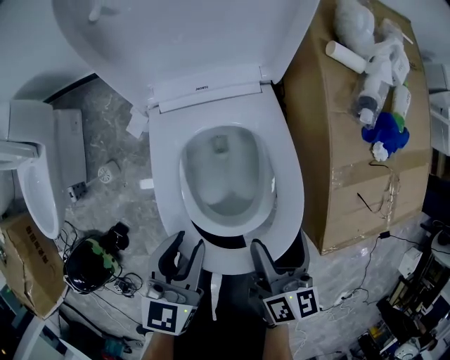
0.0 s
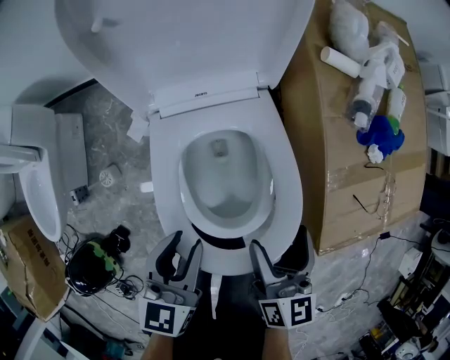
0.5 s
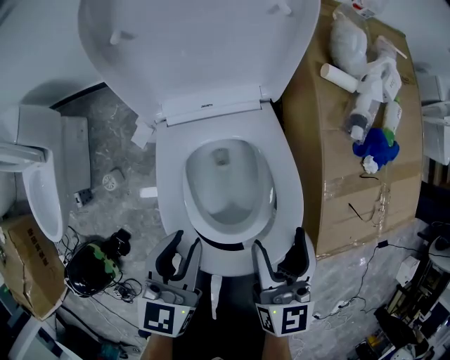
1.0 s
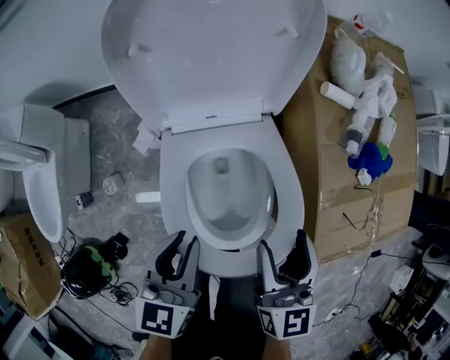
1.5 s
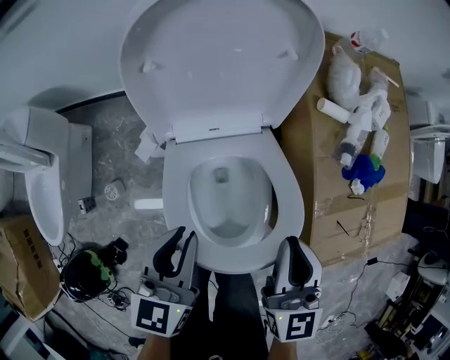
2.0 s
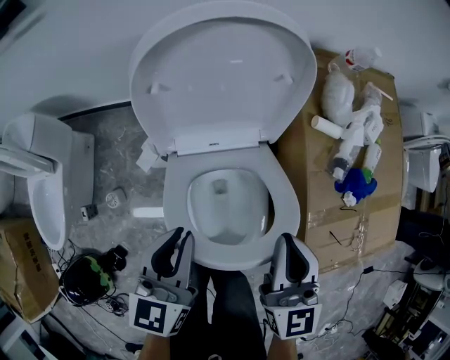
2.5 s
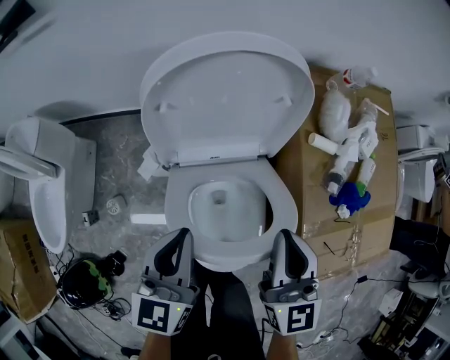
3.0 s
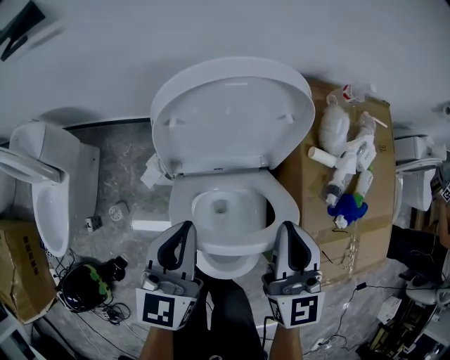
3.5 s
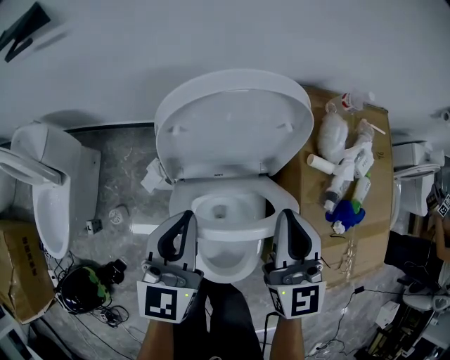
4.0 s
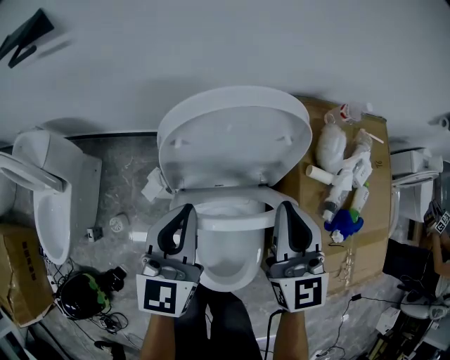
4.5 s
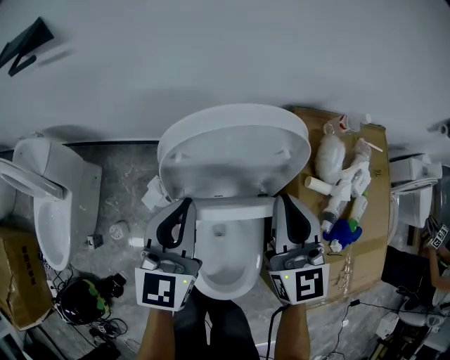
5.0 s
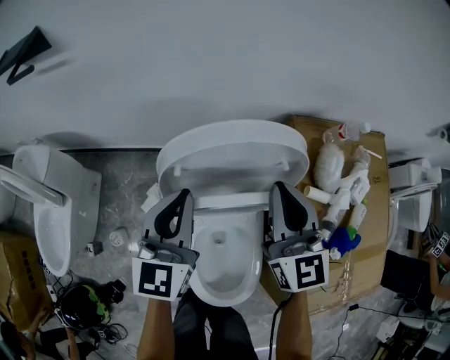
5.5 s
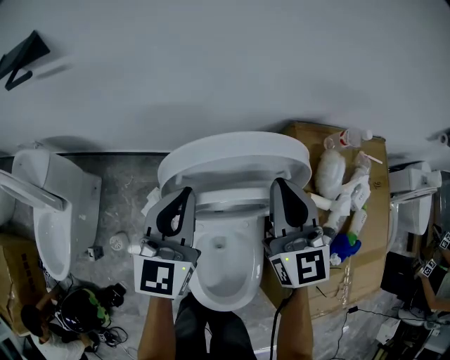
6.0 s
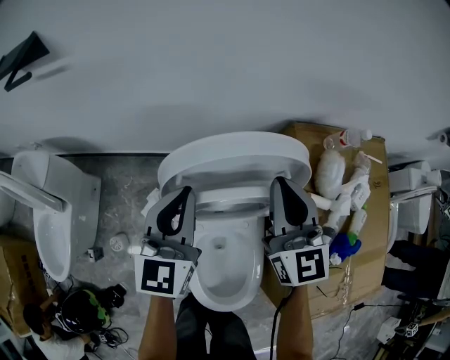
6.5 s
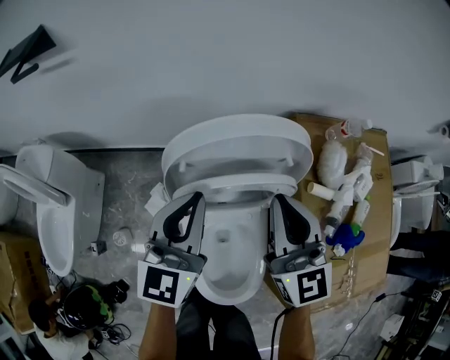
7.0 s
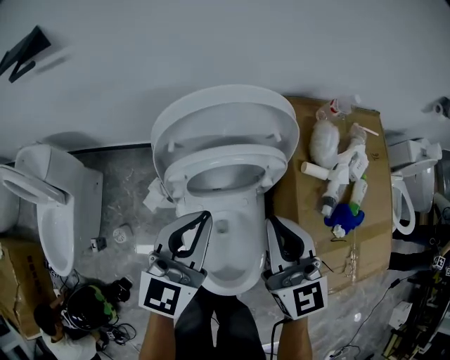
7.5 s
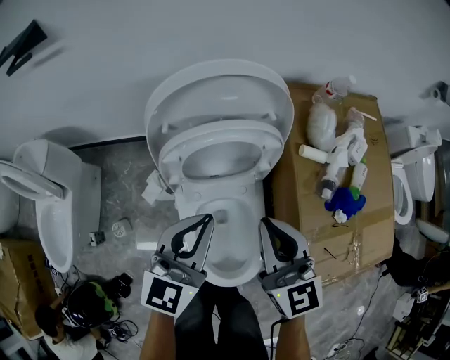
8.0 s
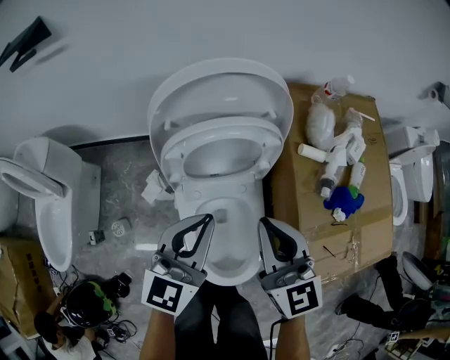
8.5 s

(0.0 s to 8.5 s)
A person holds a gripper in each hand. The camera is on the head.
0.0 s - 2.0 s: The two grippers go roughly 15 cm upward and forward. The right gripper swivels approximately 40 degrees, and closes its fingers.
2.0 s - 4.0 s: Both grippers move forward and upward, about 15 cm.
4.0 s - 6.5 s: The two grippers go approximately 15 cm forward.
6.5 s - 8.5 s: The left gripper goes about 20 cm backward and to the right. The right gripper goes approximately 20 cm backward.

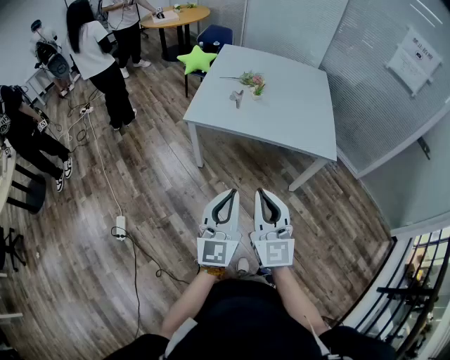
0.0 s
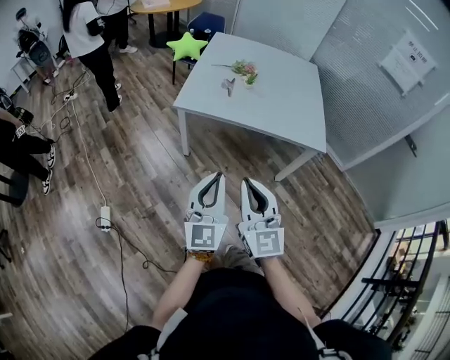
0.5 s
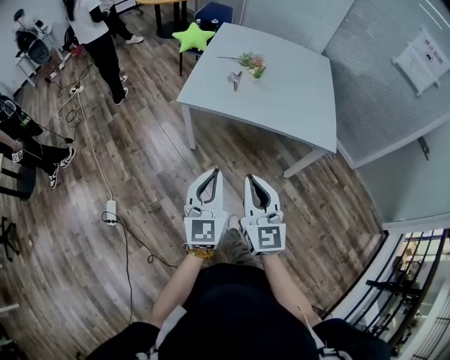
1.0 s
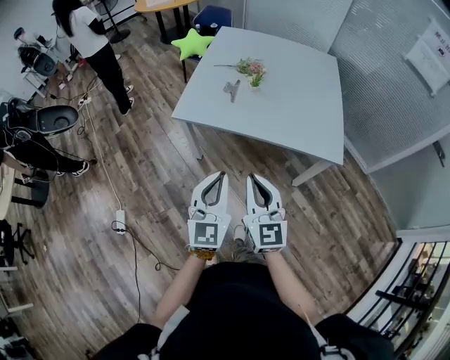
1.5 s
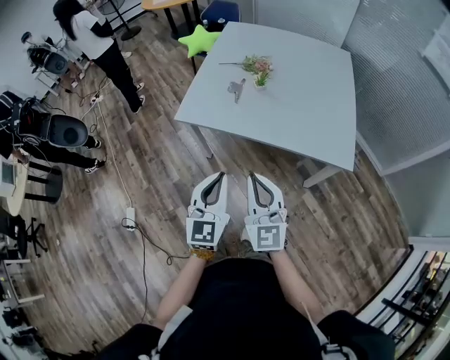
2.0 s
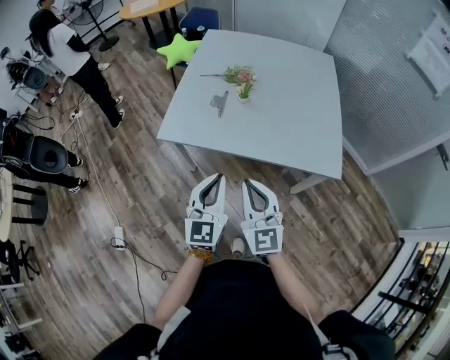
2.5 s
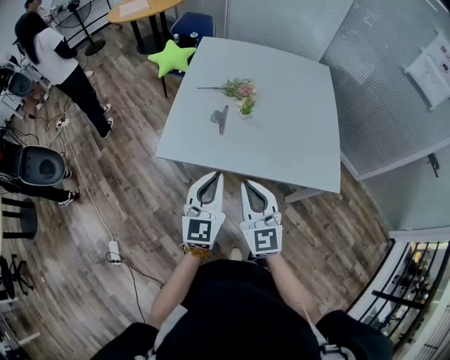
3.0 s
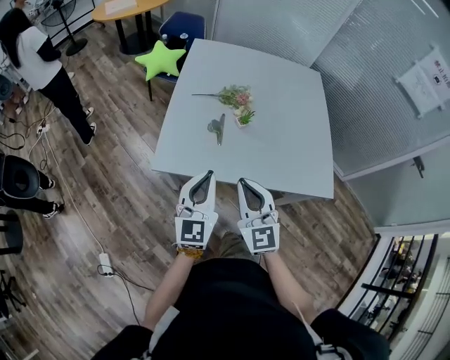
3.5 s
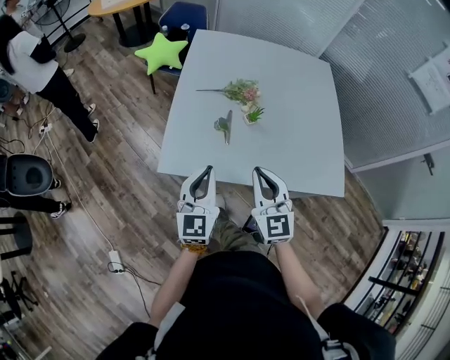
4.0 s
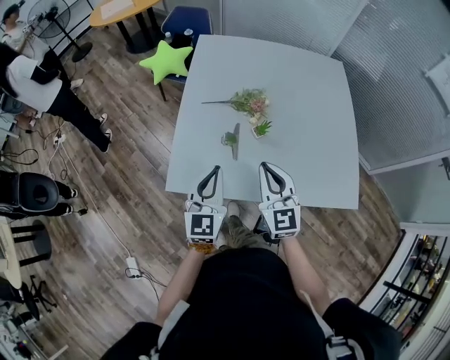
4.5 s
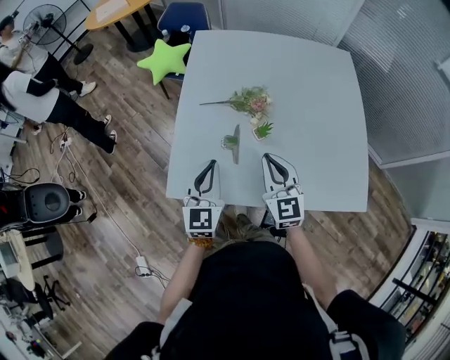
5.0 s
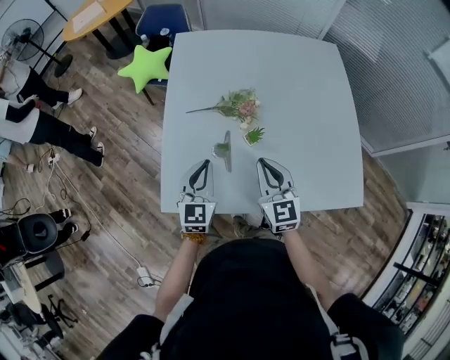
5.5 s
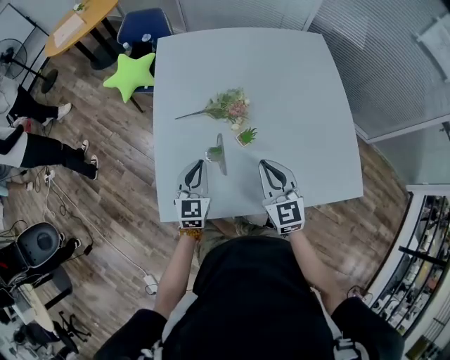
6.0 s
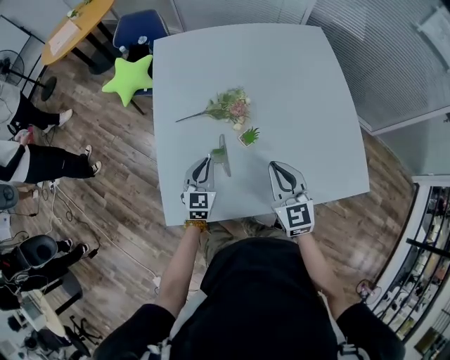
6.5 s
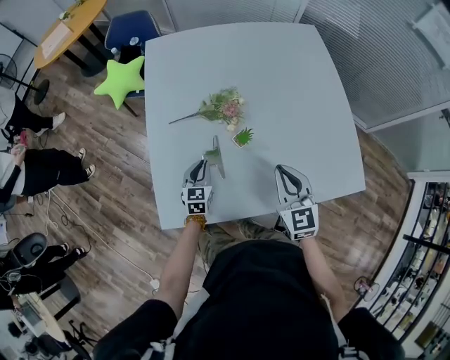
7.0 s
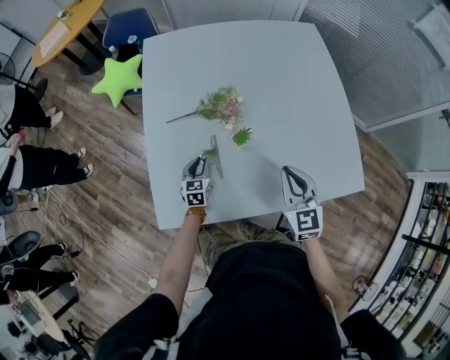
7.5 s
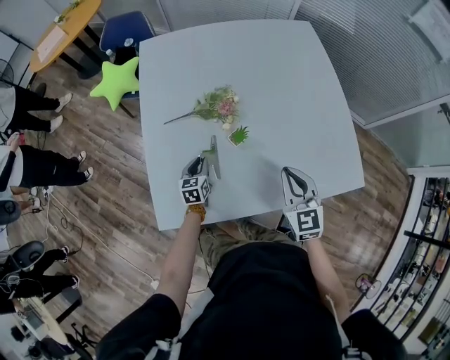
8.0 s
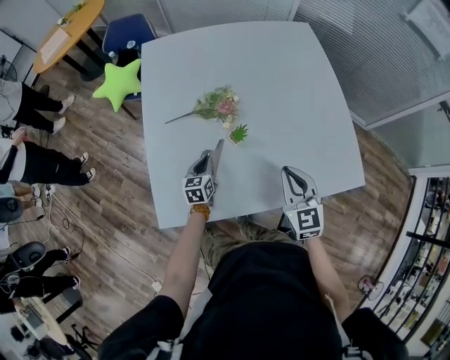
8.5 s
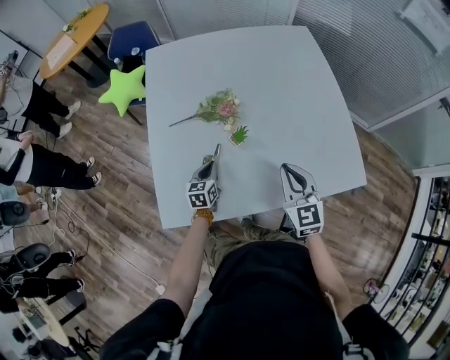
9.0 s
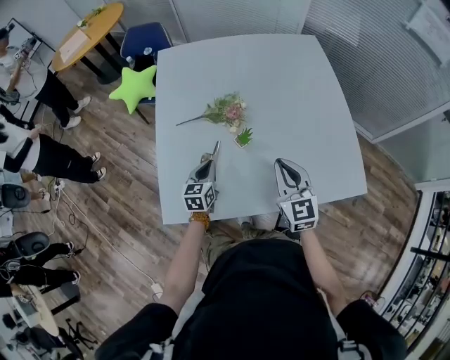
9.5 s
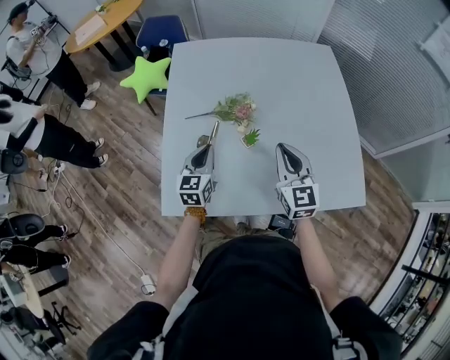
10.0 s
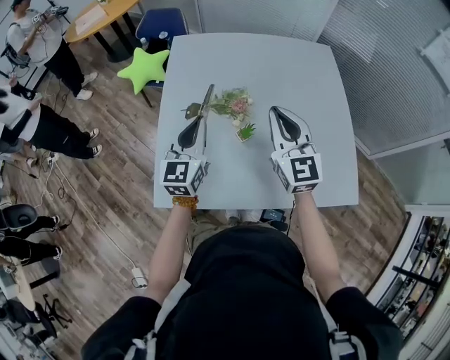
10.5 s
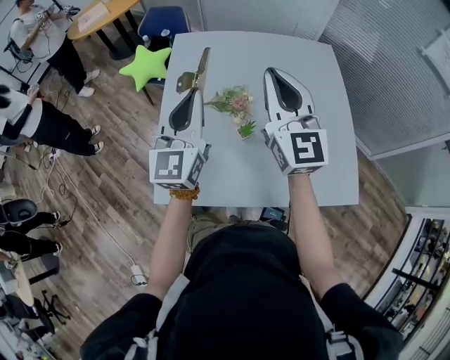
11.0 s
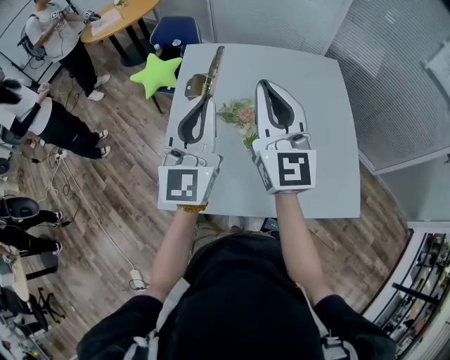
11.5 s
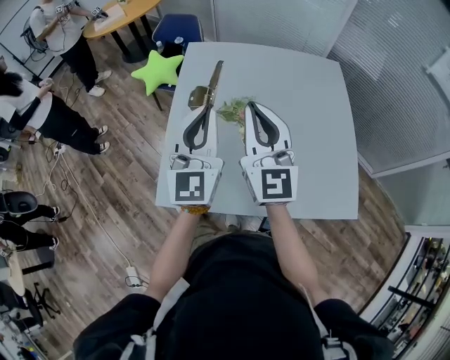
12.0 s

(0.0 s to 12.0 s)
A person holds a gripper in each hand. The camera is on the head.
0.0 s - 2.0 s: The two grippers go approximately 20 cm forward.
2.0 s - 4.0 s: The right gripper travels forward by approximately 30 cm. Meanwhile the left gripper heads forward and to the left, covering approximately 30 cm.
4.0 s - 6.0 s: The two grippers go some 25 cm forward and downward.
6.0 s - 8.0 s: The left gripper moves downward, roughly 20 cm, and swivels some 30 degrees; the right gripper is displaced to the right by some 10 cm.
8.0 s - 10.0 s: The left gripper heads upward, covering roughly 20 cm. Meanwhile the right gripper travels upward by some 5 cm.
10.0 s - 12.0 s: The right gripper is displaced upward and to the left by roughly 20 cm, and swivels some 20 degrees, while the left gripper shifts some 25 cm upward, and rotates about 30 degrees.

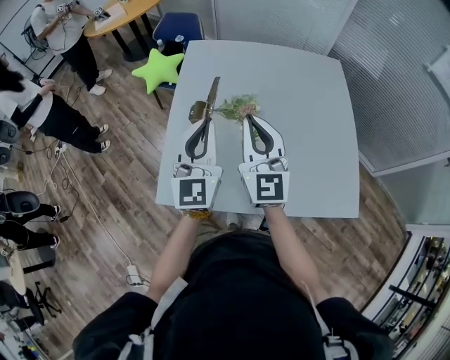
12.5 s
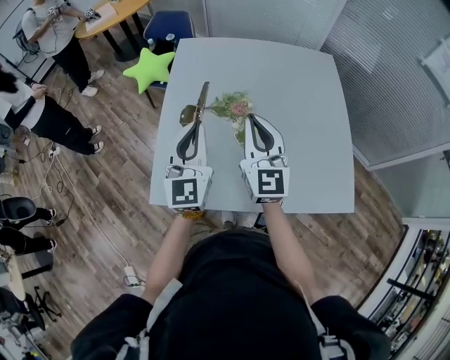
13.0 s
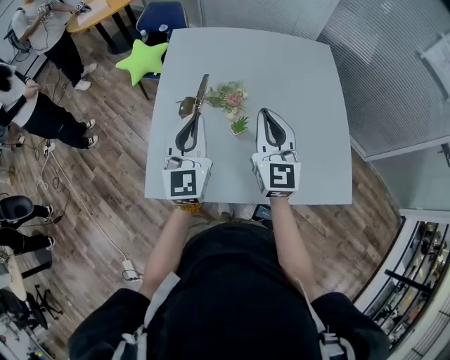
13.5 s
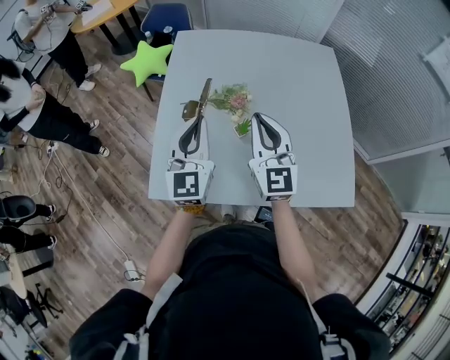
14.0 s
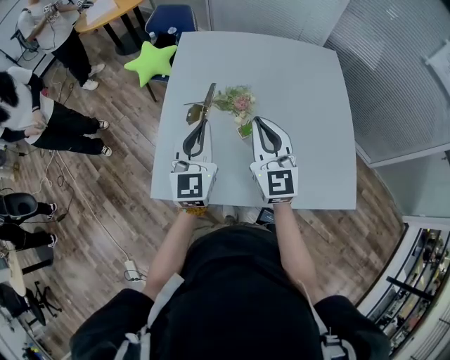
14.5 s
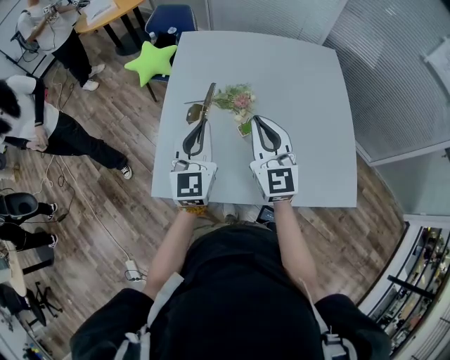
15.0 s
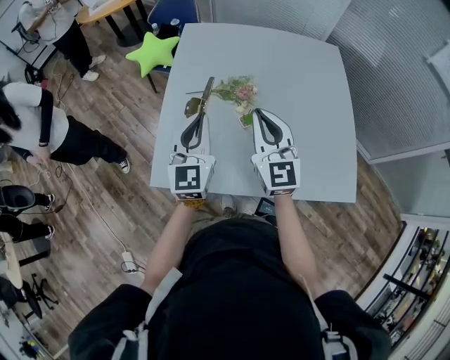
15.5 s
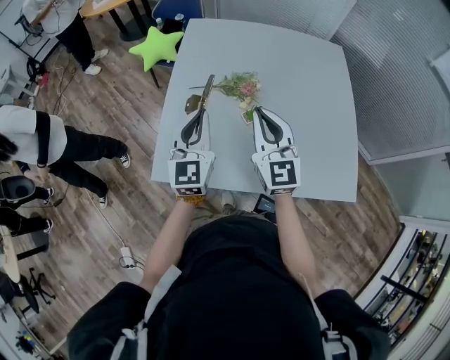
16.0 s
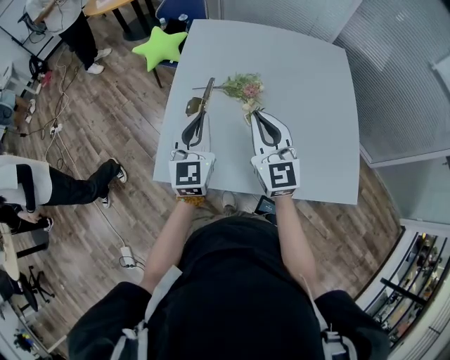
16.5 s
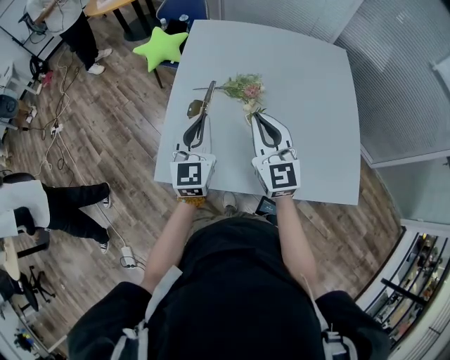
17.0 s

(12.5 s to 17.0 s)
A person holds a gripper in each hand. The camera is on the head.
12.5 s - 14.5 s: The left gripper travels downward by roughly 5 cm; the right gripper moves roughly 5 cm.
14.5 s - 17.0 s: The left gripper ends up approximately 5 cm from where it was.

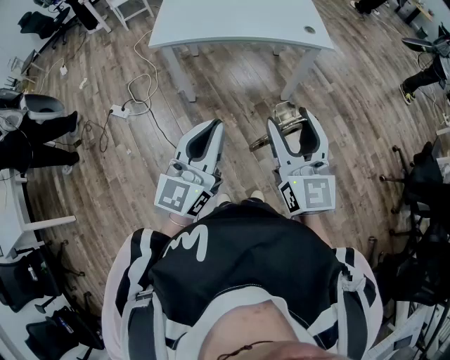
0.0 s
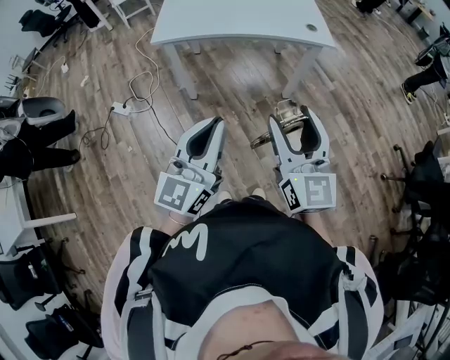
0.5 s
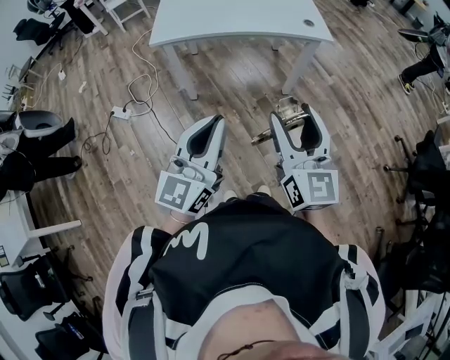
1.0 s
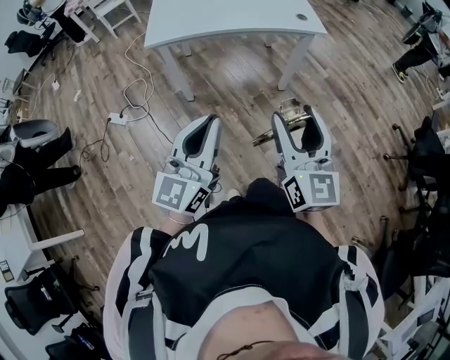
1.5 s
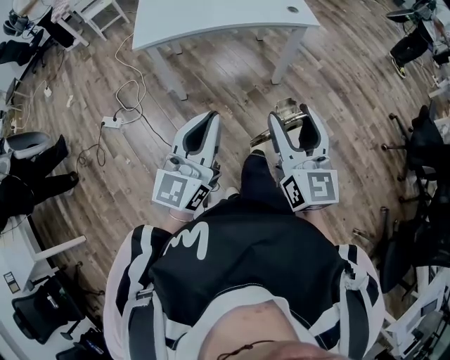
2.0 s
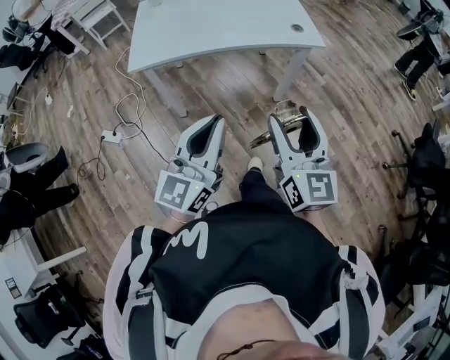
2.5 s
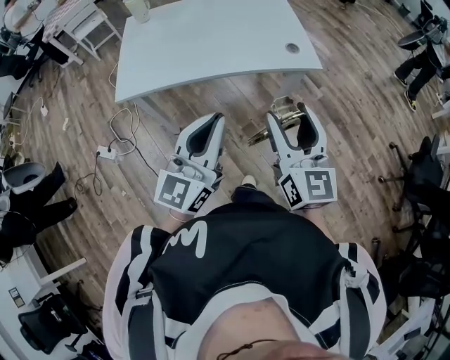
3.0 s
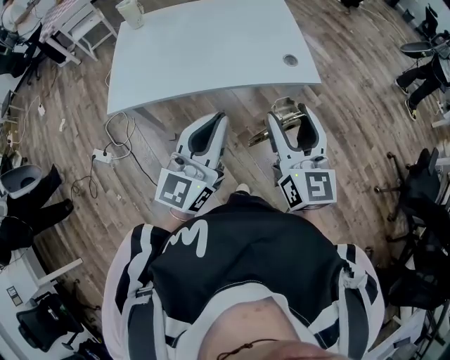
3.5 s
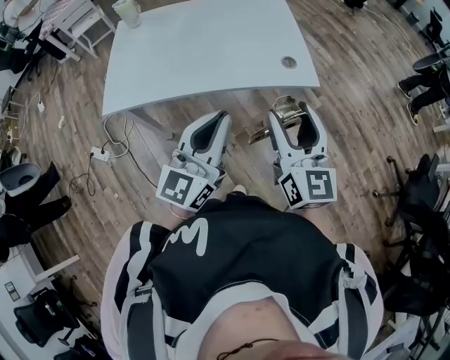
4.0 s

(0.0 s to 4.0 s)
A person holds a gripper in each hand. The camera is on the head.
0.0 s - 2.0 s: The grippers stay close to where they were, moving slightly.
2.0 s - 4.0 s: Both grippers travel together forward, approximately 35 cm.
